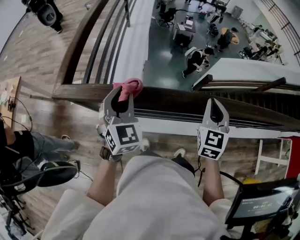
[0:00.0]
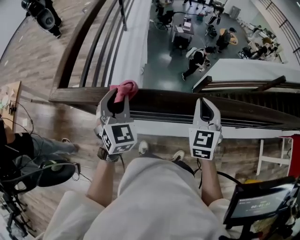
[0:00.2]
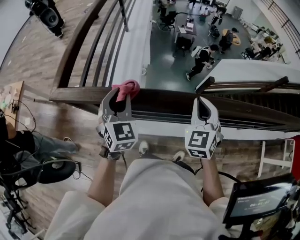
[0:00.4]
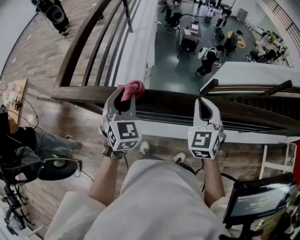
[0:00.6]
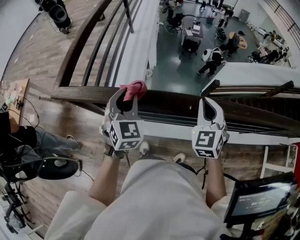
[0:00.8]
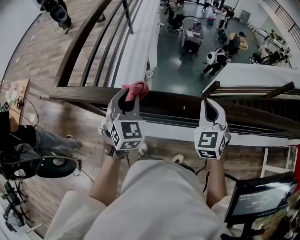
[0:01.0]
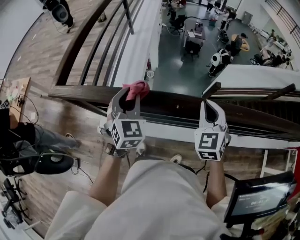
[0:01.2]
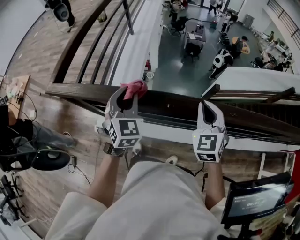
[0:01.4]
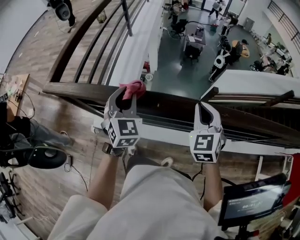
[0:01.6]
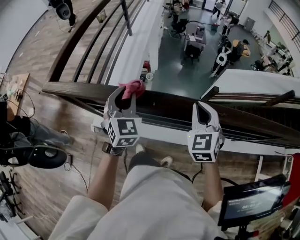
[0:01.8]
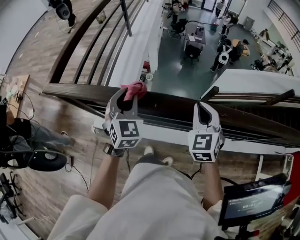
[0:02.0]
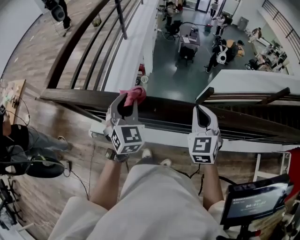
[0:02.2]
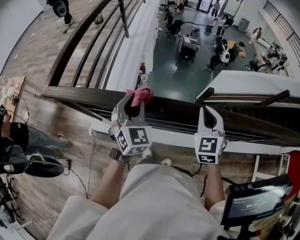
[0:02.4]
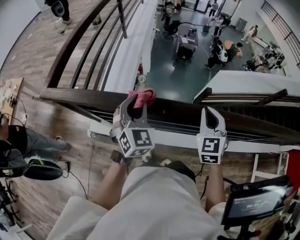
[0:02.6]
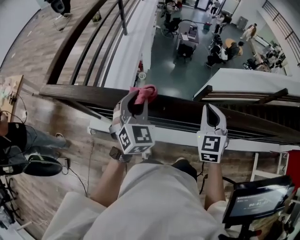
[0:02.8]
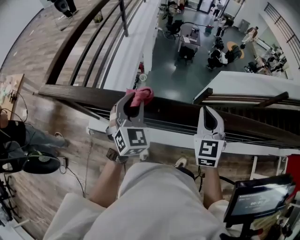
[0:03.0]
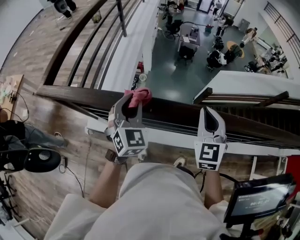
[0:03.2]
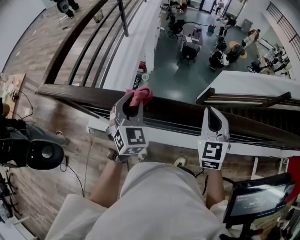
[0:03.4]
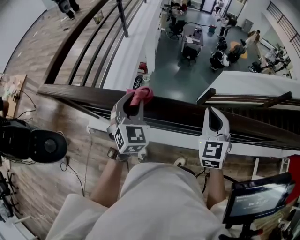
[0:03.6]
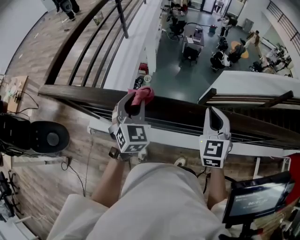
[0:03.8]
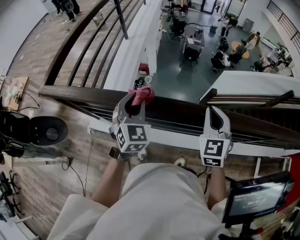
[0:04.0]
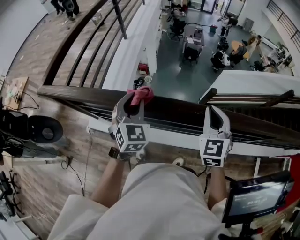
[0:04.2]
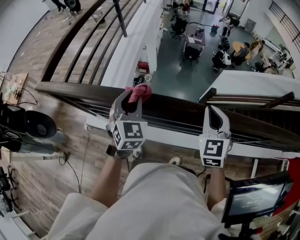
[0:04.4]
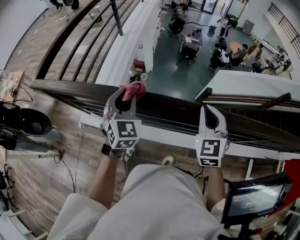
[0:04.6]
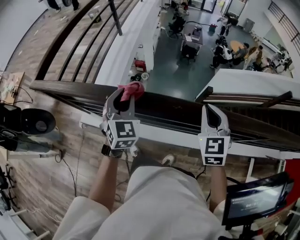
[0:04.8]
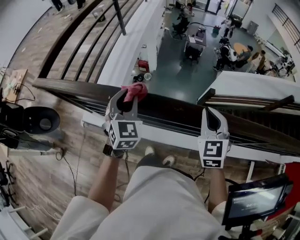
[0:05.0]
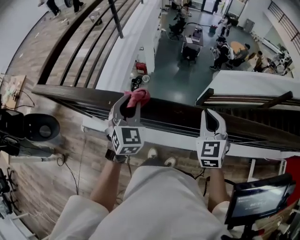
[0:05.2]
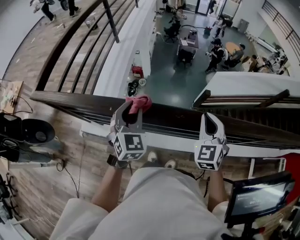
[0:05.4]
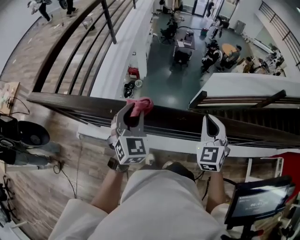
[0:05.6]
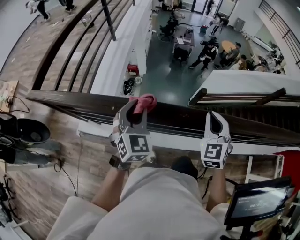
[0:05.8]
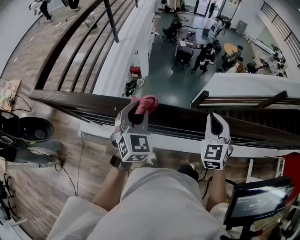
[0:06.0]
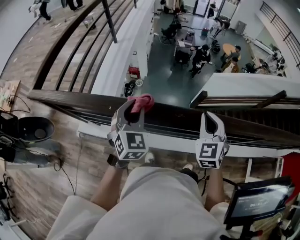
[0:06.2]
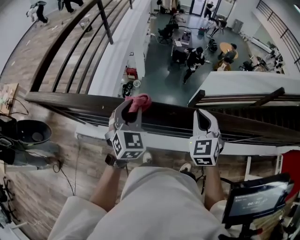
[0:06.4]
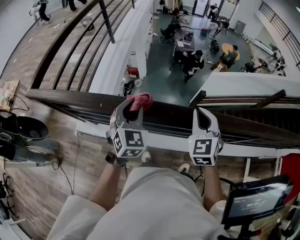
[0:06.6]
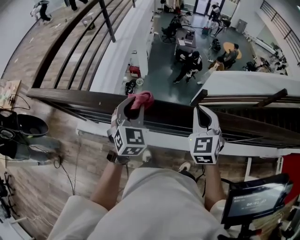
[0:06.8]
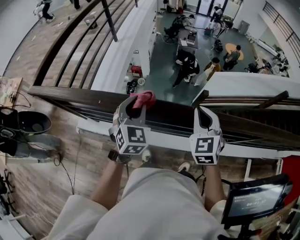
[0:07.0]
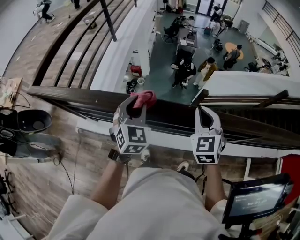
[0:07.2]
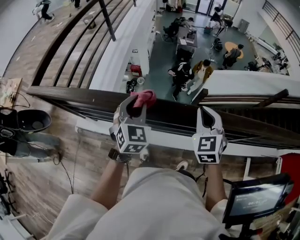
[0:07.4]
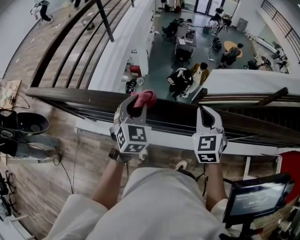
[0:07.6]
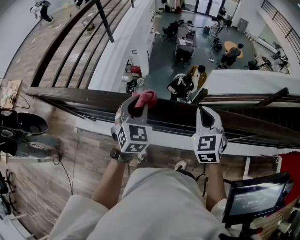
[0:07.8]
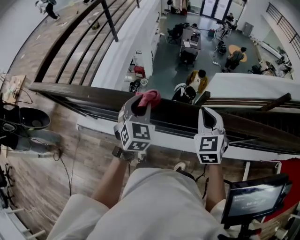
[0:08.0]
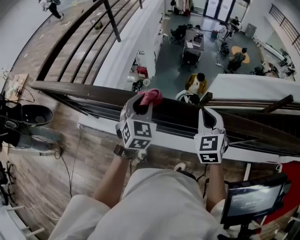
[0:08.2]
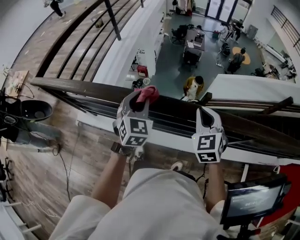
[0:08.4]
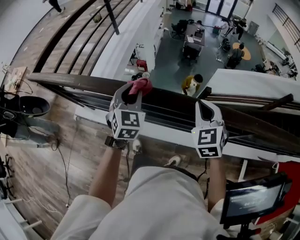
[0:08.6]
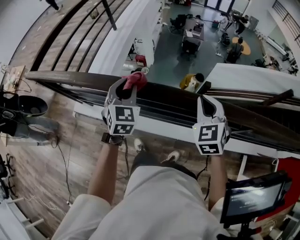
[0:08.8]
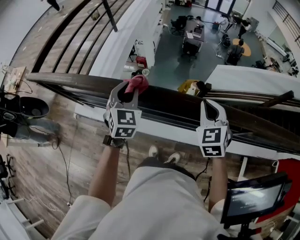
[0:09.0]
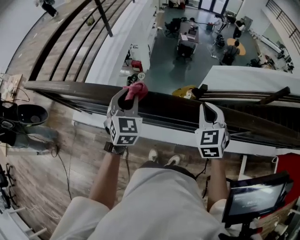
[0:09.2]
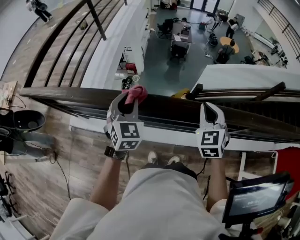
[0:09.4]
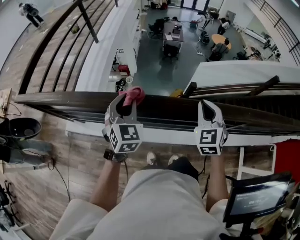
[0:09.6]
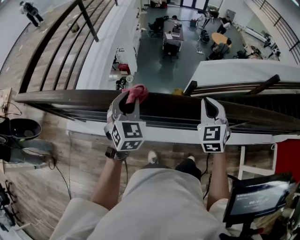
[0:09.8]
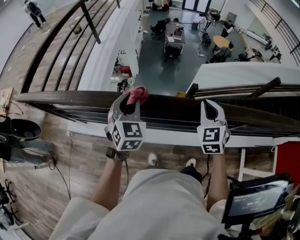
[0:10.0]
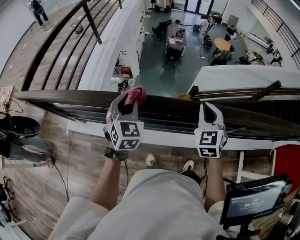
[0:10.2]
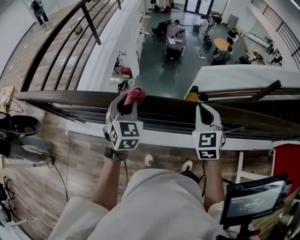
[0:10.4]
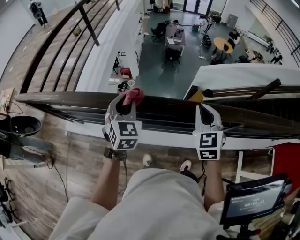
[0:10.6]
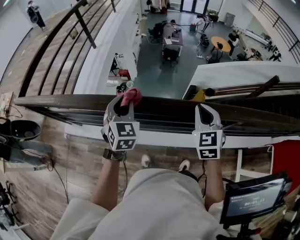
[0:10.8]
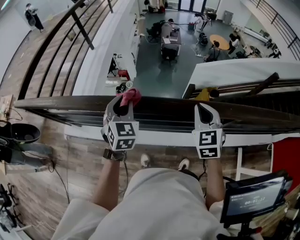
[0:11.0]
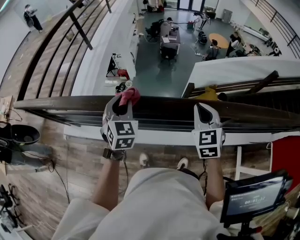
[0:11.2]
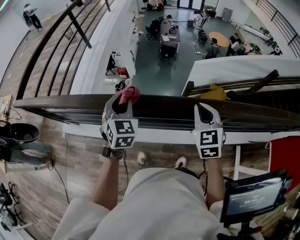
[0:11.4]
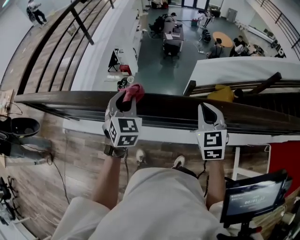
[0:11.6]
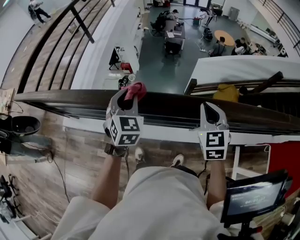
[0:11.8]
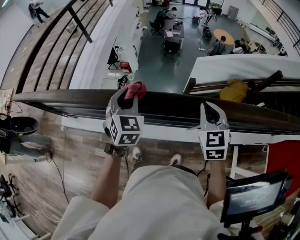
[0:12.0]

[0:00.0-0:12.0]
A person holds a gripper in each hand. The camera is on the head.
0:00.0 to 0:01.6: Both grippers move to the right, approximately 15 cm. The right gripper rotates approximately 20 degrees.
0:01.6 to 0:03.0: The grippers move only a little.
0:03.0 to 0:04.4: The two grippers go roughly 15 cm to the right.
0:04.4 to 0:06.0: The grippers make only small movements.
0:06.0 to 0:07.6: The left gripper moves to the right, approximately 5 cm.
0:07.6 to 0:09.0: The right gripper heads to the right, covering some 10 cm.
0:09.0 to 0:10.4: There are only small adjustments of the grippers.
0:10.4 to 0:12.0: Both grippers move to the right, about 15 cm.

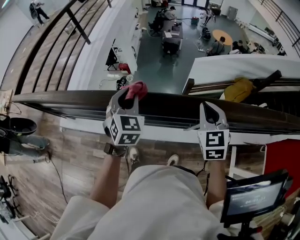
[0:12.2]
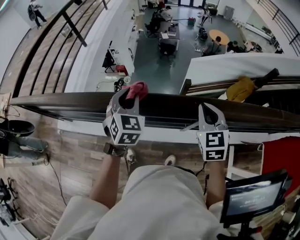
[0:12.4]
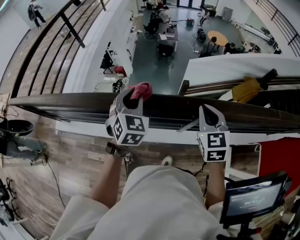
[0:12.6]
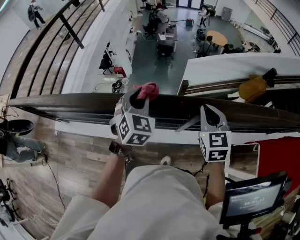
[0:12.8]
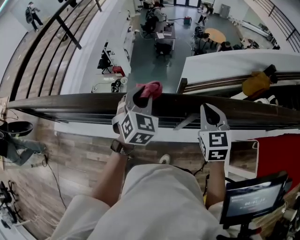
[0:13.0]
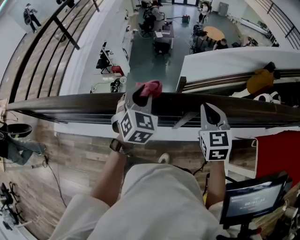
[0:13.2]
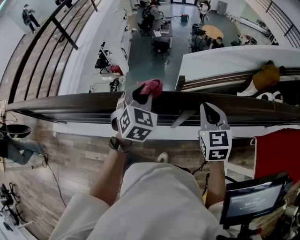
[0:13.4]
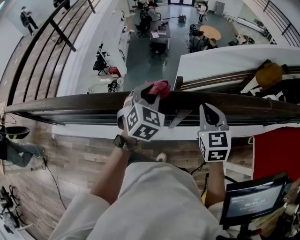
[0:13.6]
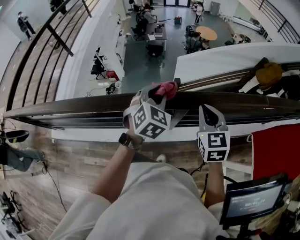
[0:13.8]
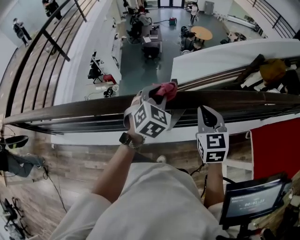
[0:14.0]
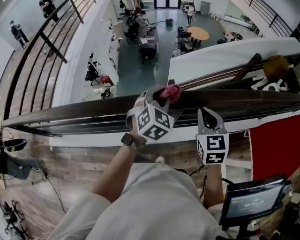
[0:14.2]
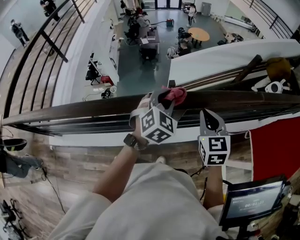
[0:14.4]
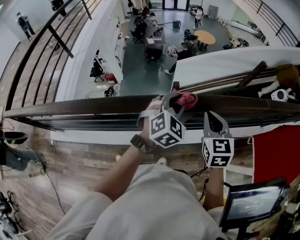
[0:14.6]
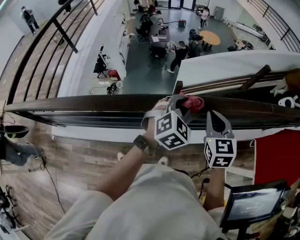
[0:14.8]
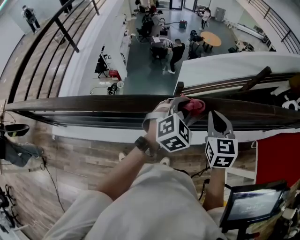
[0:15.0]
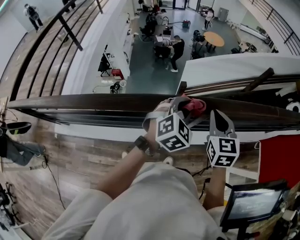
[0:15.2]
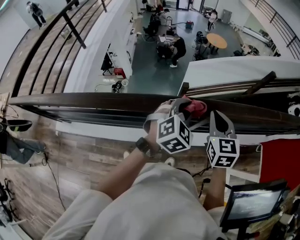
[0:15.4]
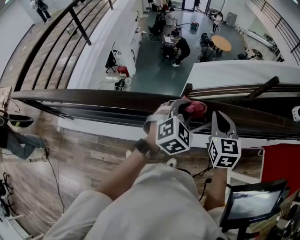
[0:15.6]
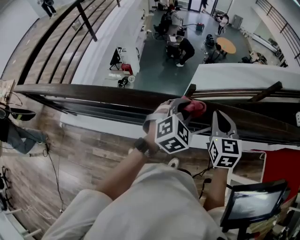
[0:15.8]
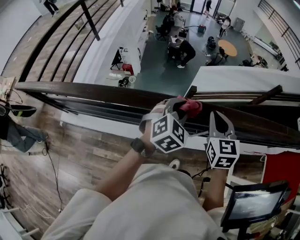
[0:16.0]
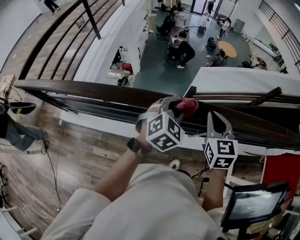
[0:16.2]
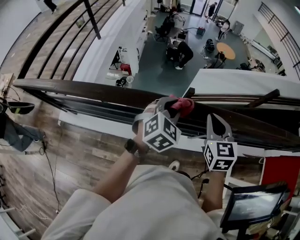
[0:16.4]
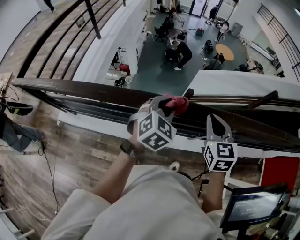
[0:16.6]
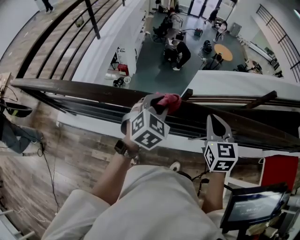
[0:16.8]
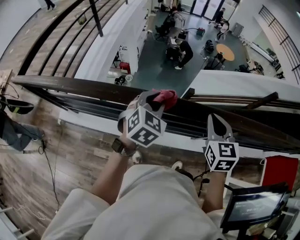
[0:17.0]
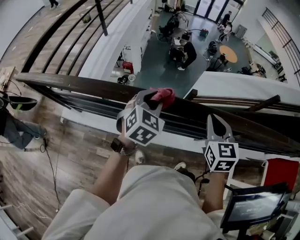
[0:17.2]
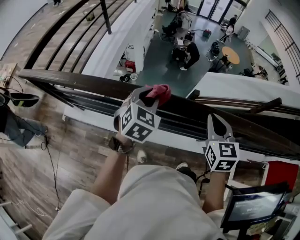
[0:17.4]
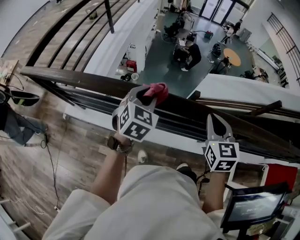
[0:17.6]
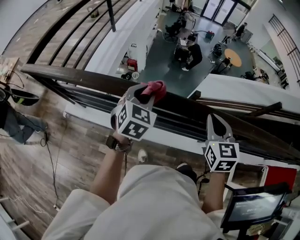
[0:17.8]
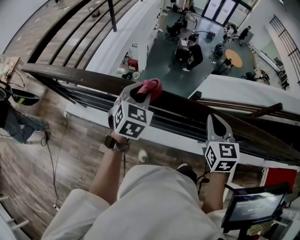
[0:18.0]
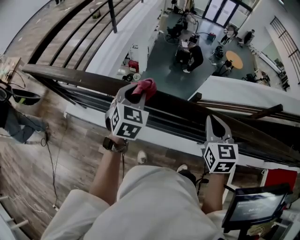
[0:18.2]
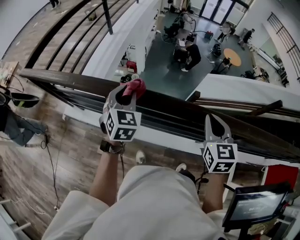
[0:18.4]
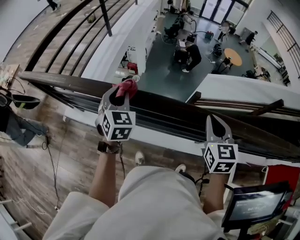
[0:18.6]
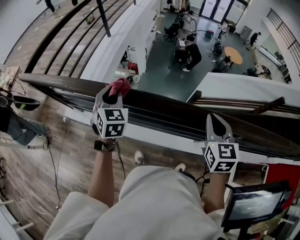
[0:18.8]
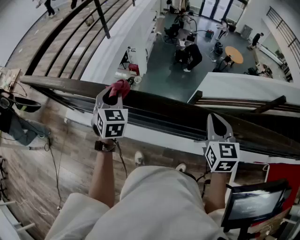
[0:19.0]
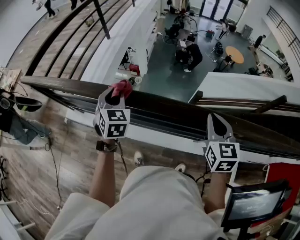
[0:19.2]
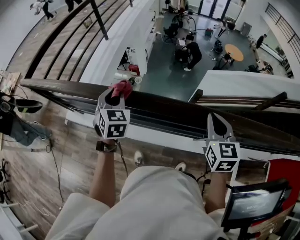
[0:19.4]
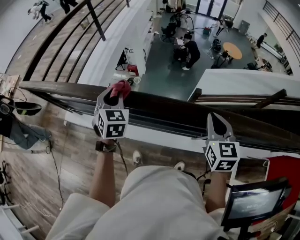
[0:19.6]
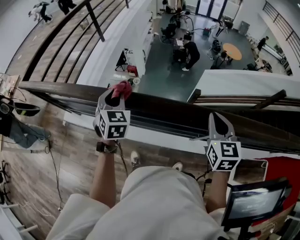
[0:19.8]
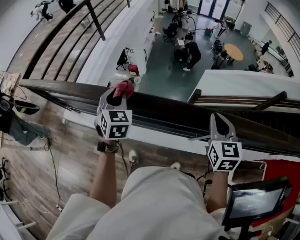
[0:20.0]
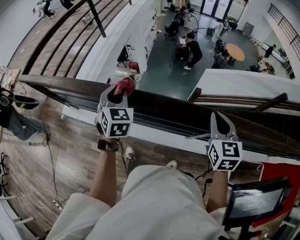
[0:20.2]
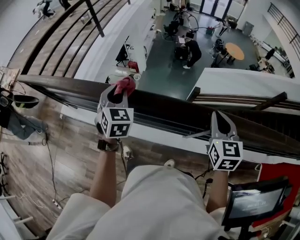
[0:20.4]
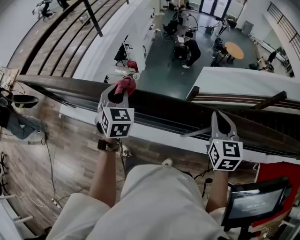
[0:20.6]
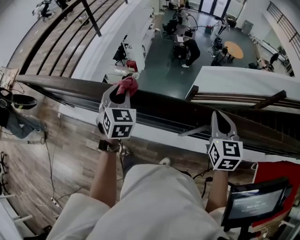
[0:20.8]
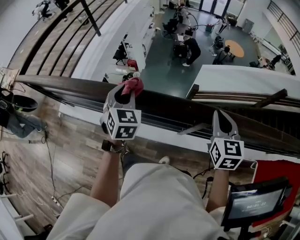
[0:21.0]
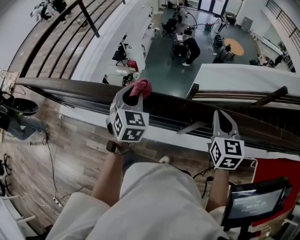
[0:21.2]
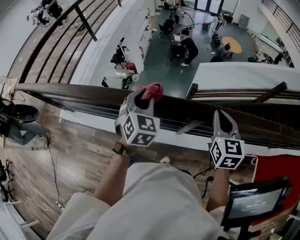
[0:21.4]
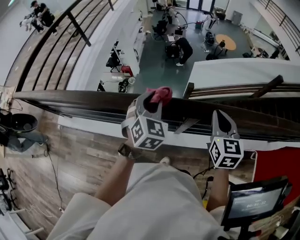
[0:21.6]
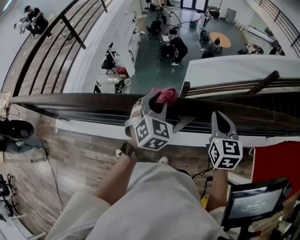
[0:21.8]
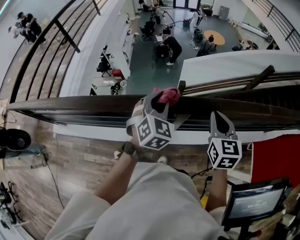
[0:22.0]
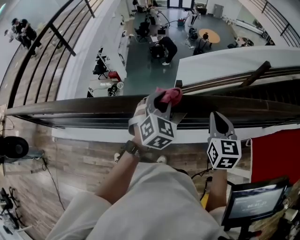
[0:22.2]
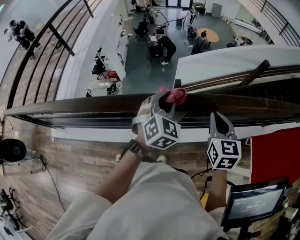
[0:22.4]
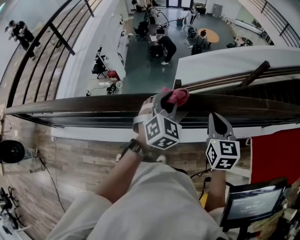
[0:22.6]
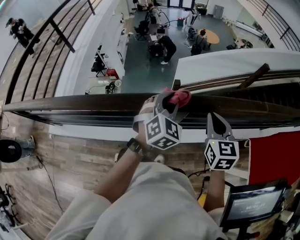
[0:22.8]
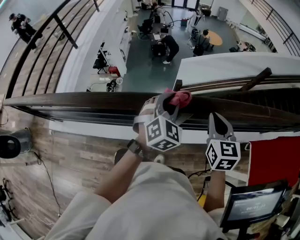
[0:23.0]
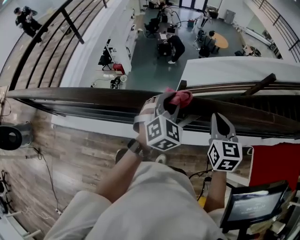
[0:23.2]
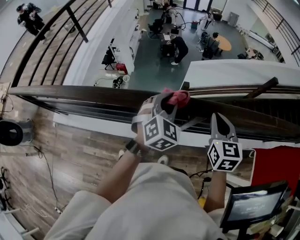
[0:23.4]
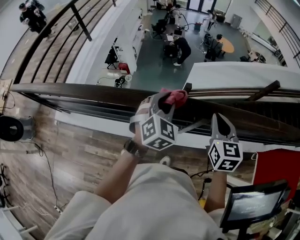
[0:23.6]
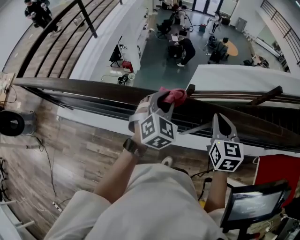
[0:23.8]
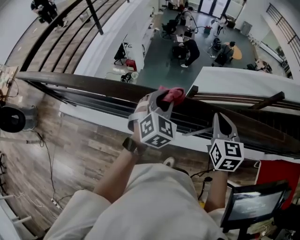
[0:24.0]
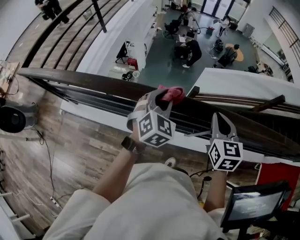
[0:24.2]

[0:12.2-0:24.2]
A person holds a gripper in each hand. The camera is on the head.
0:12.2 to 0:13.8: The right gripper is displaced to the right by roughly 15 cm; the left gripper is displaced to the right by approximately 25 cm, and rotates about 20 degrees.
0:15.2 to 0:16.6: The two grippers go approximately 20 cm to the left.
0:16.6 to 0:18.2: The left gripper heads to the left, covering some 25 cm, and changes its angle by roughly 30 degrees. The right gripper shifts some 15 cm to the left.
0:18.2 to 0:19.8: The right gripper shifts approximately 15 cm to the right; the left gripper heads to the right, covering about 5 cm.
0:19.8 to 0:21.2: Both grippers travel together to the right, about 20 cm.
0:21.2 to 0:22.6: The left gripper shifts about 25 cm to the right, and swivels some 30 degrees. The right gripper travels to the right and backward by about 10 cm.
0:22.6 to 0:24.2: The grippers both shift to the left by about 20 cm.
